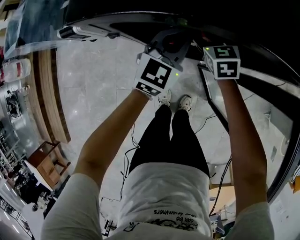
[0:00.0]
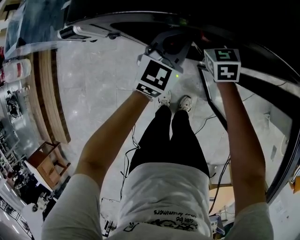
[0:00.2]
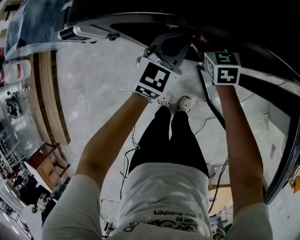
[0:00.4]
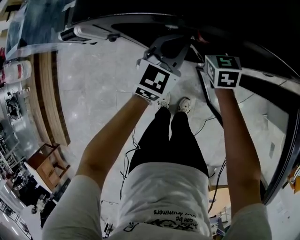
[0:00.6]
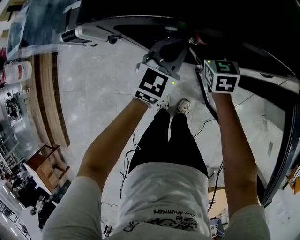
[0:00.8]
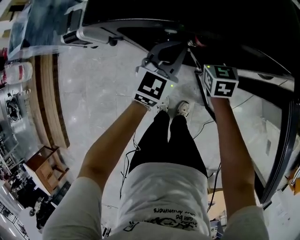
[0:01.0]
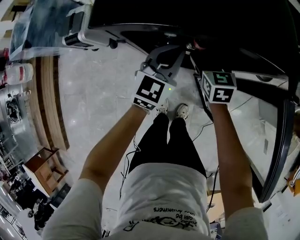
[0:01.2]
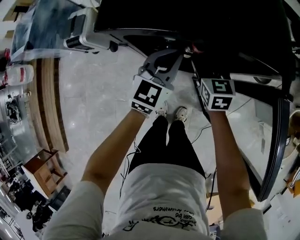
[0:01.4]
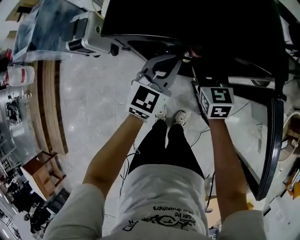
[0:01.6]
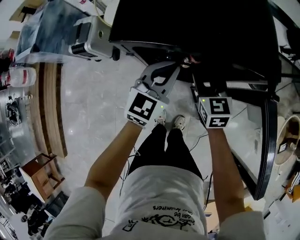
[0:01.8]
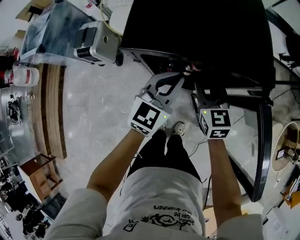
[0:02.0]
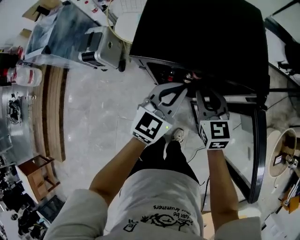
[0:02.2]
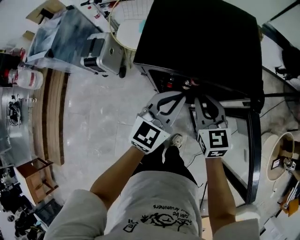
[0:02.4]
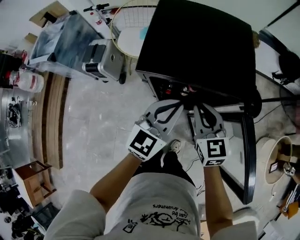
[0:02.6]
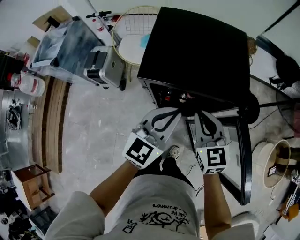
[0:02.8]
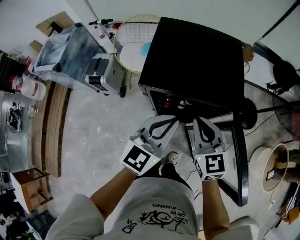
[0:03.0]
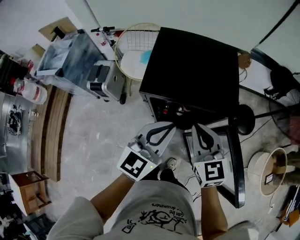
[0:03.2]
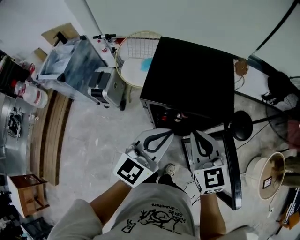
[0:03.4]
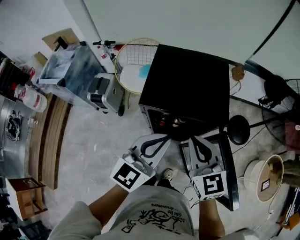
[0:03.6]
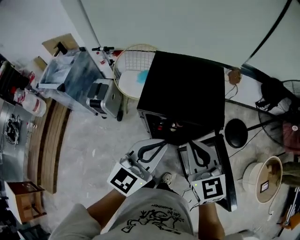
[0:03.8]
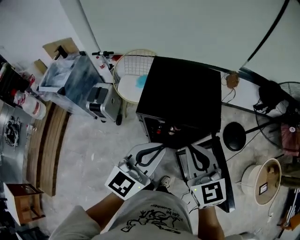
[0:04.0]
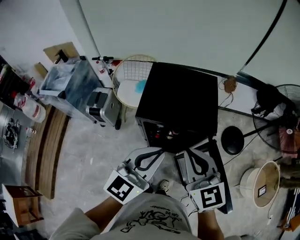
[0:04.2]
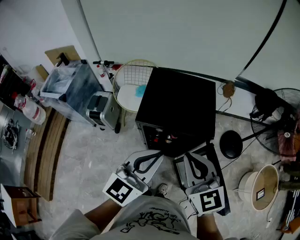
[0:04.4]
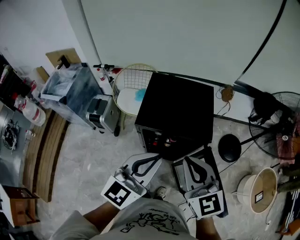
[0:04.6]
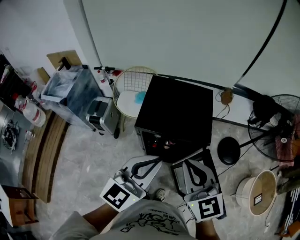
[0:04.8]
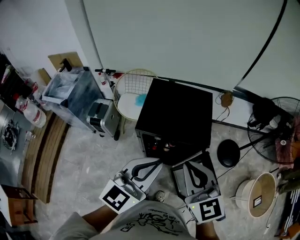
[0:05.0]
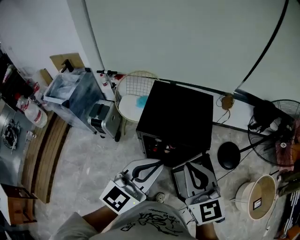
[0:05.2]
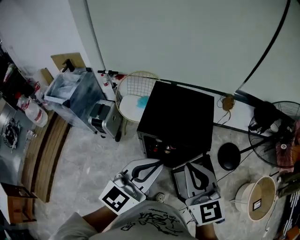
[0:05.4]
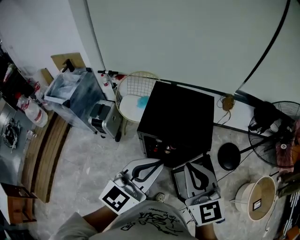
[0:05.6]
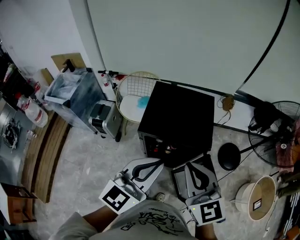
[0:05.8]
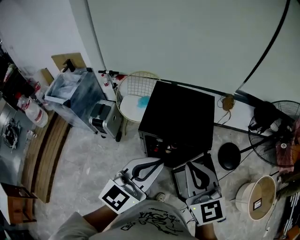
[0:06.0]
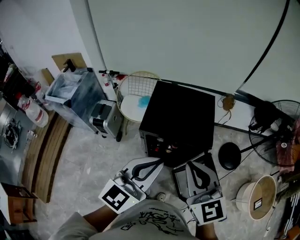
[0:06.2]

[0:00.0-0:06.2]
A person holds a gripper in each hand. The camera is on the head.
0.0 to 1.6 s: The left gripper travels upward by about 5 cm, while the right gripper moves upward and backward, roughly 10 cm, and closes.
1.6 to 3.2 s: The right gripper travels upward by about 25 cm, and closes its fingers; the left gripper is displaced upward and backward by roughly 25 cm.
3.2 to 4.6 s: Both grippers travel together upward, approximately 15 cm.
4.6 to 6.2 s: The grippers make only small movements.

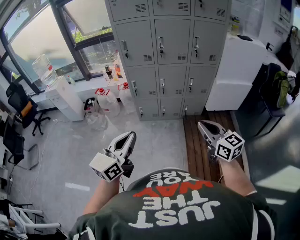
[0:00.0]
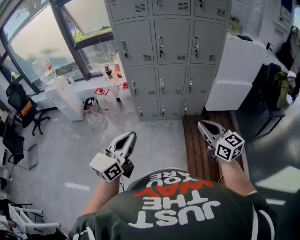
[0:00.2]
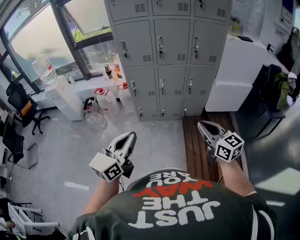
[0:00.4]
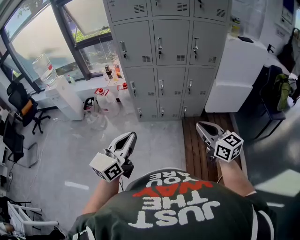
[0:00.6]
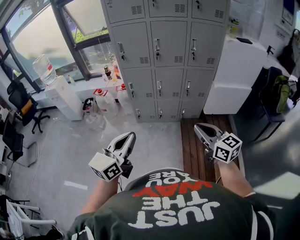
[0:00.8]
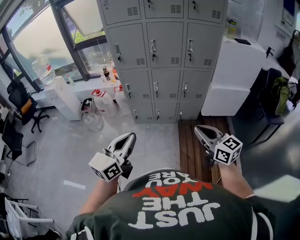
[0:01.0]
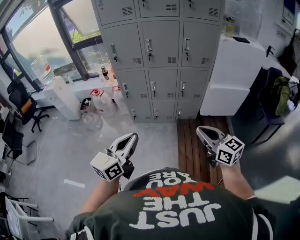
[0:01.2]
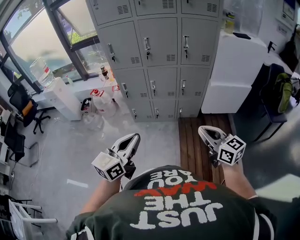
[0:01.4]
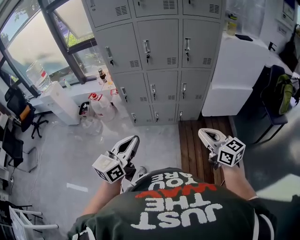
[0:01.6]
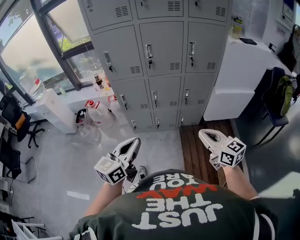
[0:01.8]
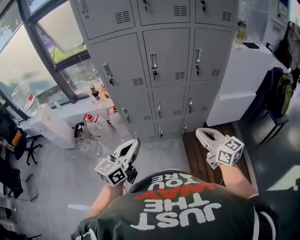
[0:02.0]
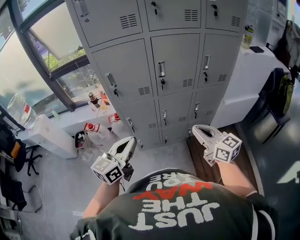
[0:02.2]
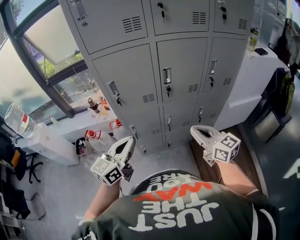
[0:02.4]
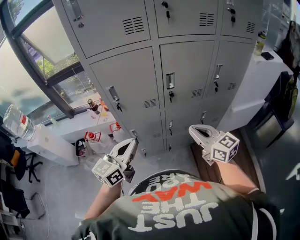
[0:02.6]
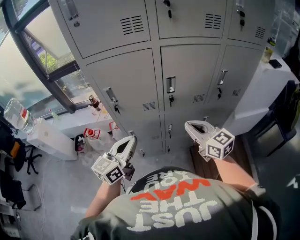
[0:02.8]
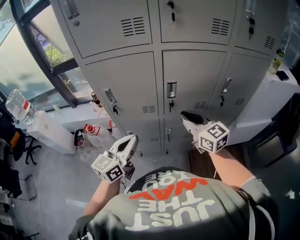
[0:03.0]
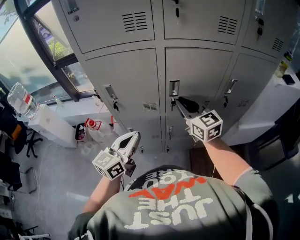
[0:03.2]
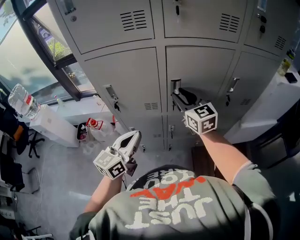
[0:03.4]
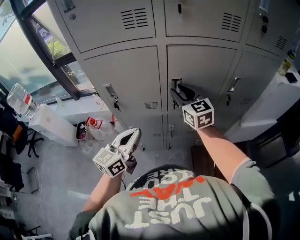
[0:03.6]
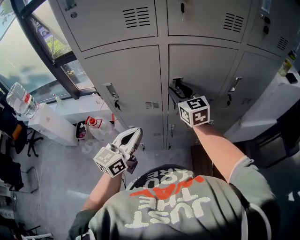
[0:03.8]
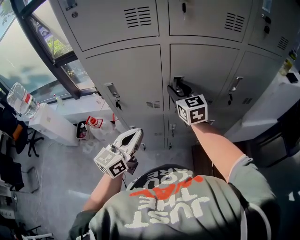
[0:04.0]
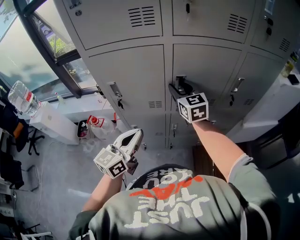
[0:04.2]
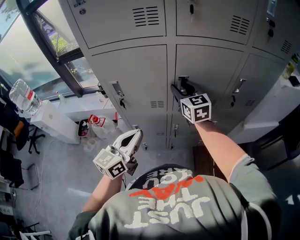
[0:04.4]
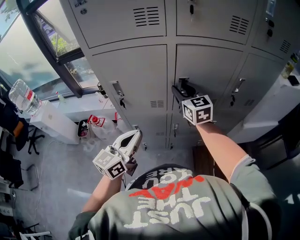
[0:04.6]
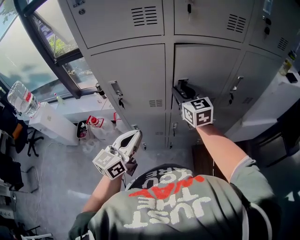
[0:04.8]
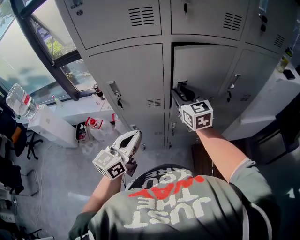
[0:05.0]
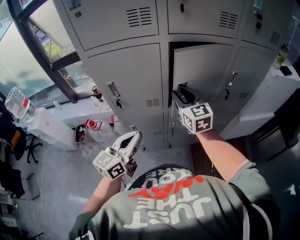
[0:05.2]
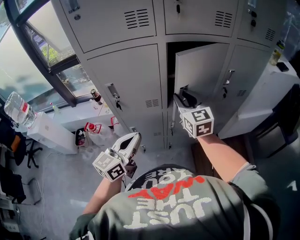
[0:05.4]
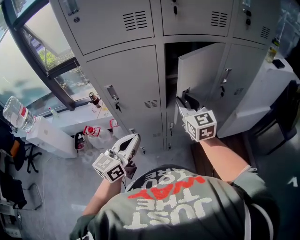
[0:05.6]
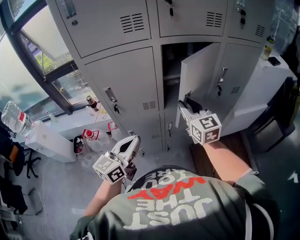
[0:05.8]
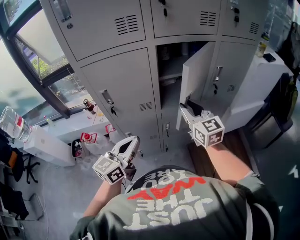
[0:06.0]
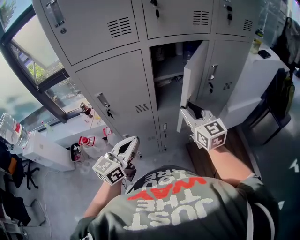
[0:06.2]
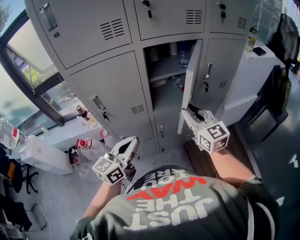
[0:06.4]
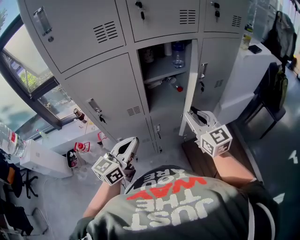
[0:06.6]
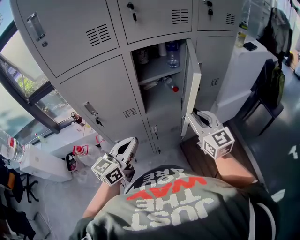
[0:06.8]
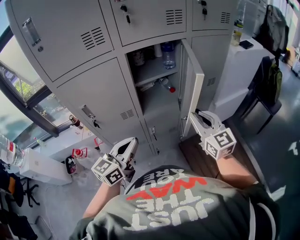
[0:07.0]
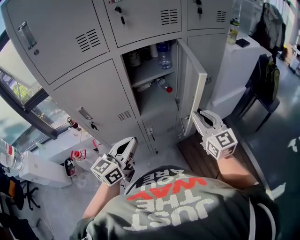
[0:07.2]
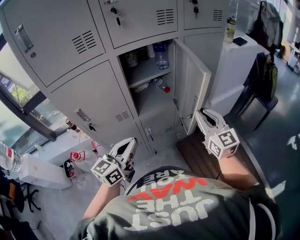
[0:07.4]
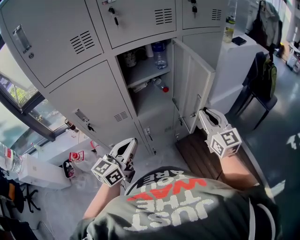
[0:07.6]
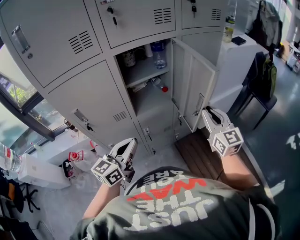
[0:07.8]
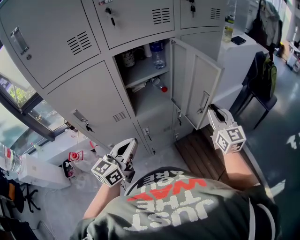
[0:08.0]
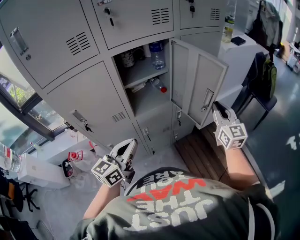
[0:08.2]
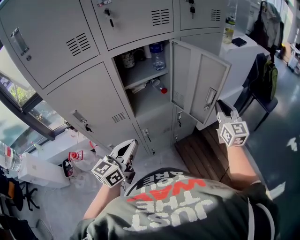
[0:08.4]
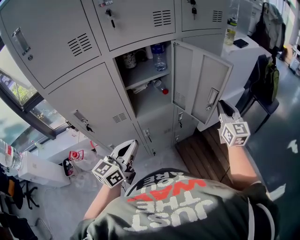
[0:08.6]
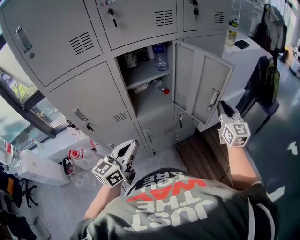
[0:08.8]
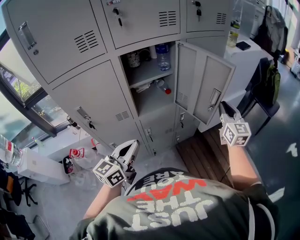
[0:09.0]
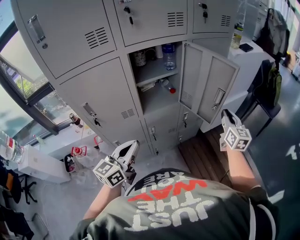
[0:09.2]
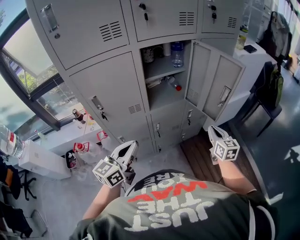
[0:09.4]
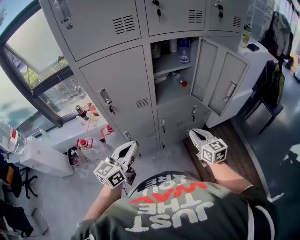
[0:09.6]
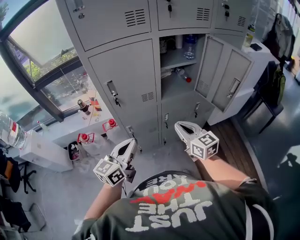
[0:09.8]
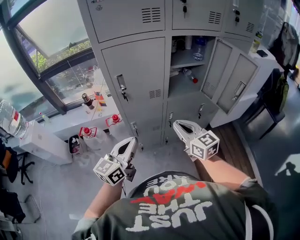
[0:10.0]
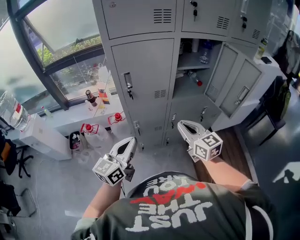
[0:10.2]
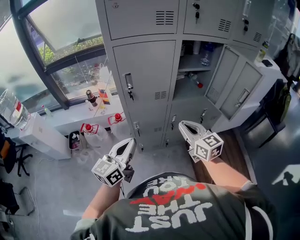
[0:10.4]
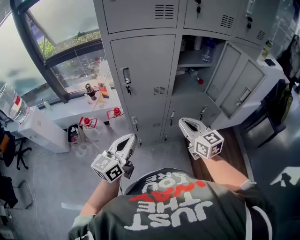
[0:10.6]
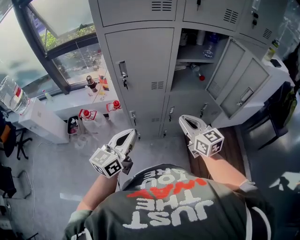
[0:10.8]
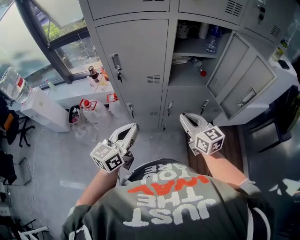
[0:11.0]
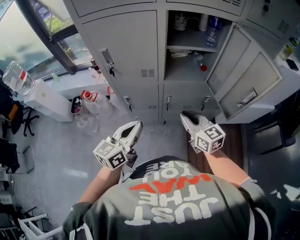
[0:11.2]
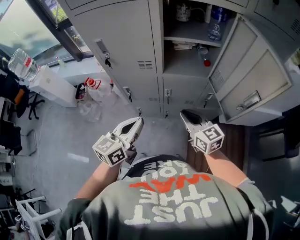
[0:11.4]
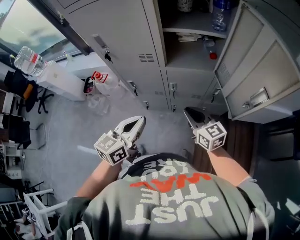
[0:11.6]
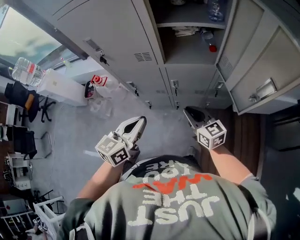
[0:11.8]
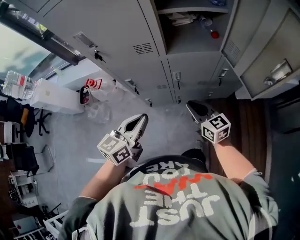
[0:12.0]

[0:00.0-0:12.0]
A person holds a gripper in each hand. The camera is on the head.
0.0 to 1.6 s: The two grippers go about 15 cm to the right and forward.
1.6 to 3.0 s: Both grippers are carried forward and to the left, approximately 50 cm.
3.0 to 4.4 s: The right gripper goes approximately 15 cm forward and to the left, and opens up.
4.4 to 6.0 s: The right gripper shifts some 15 cm backward and to the right.
6.0 to 7.6 s: The left gripper travels to the right by roughly 10 cm; the right gripper is displaced to the right by some 20 cm.
7.6 to 9.0 s: The right gripper goes some 10 cm to the right and forward.
9.0 to 10.4 s: The left gripper changes place by about 25 cm; the right gripper shifts by some 40 cm, and changes its angle by some 40 degrees.
10.4 to 12.0 s: The left gripper goes some 25 cm to the right and downward. The right gripper is displaced downward and to the right by roughly 25 cm.

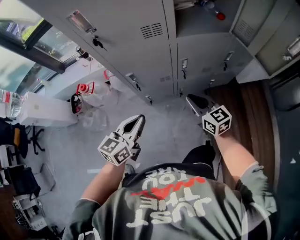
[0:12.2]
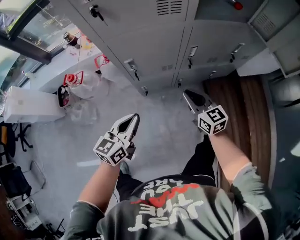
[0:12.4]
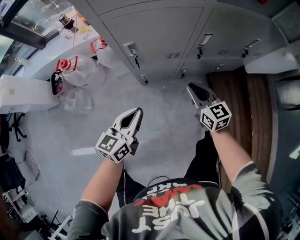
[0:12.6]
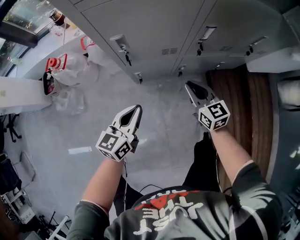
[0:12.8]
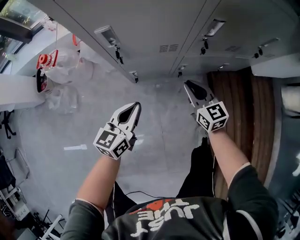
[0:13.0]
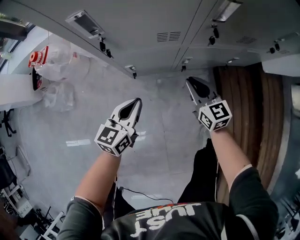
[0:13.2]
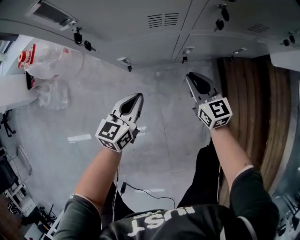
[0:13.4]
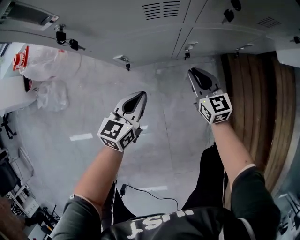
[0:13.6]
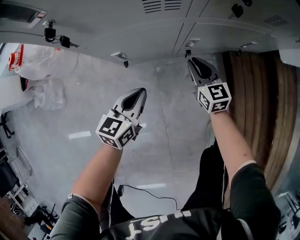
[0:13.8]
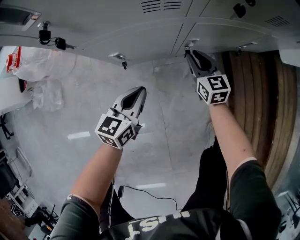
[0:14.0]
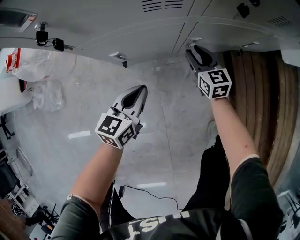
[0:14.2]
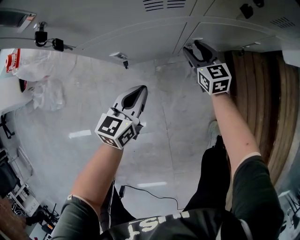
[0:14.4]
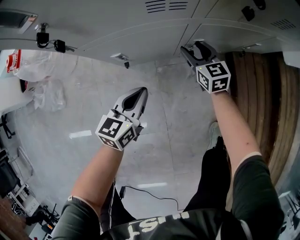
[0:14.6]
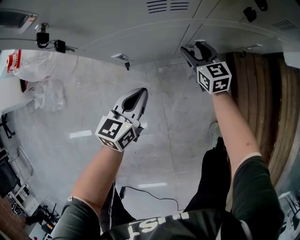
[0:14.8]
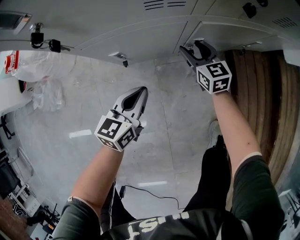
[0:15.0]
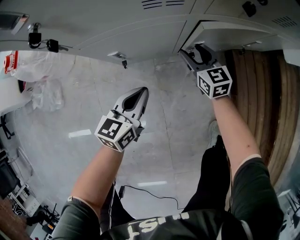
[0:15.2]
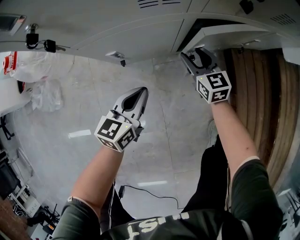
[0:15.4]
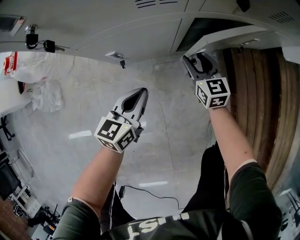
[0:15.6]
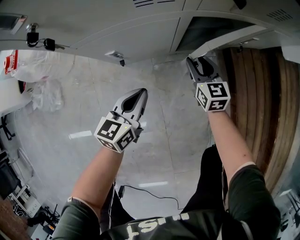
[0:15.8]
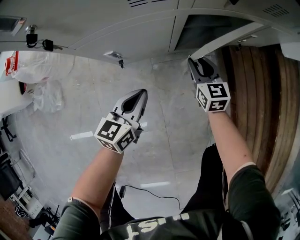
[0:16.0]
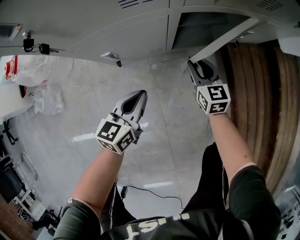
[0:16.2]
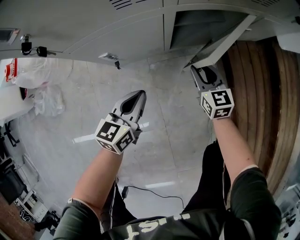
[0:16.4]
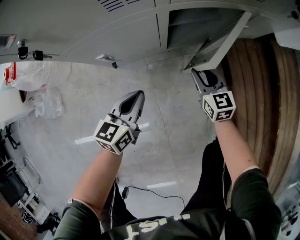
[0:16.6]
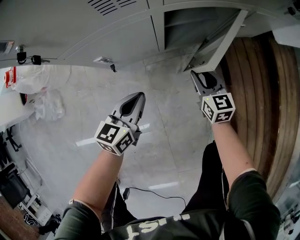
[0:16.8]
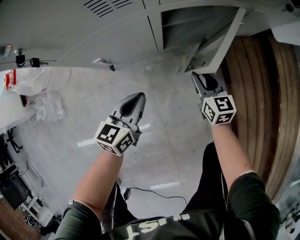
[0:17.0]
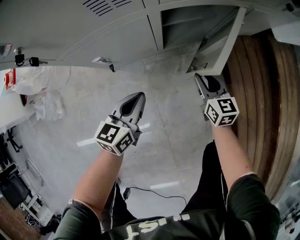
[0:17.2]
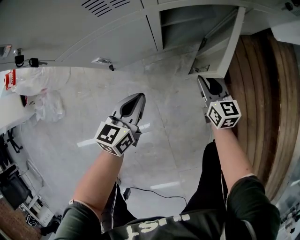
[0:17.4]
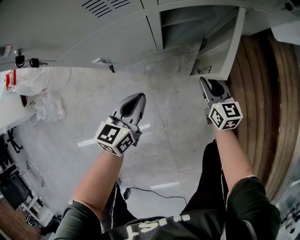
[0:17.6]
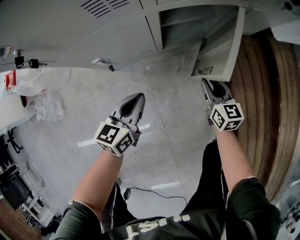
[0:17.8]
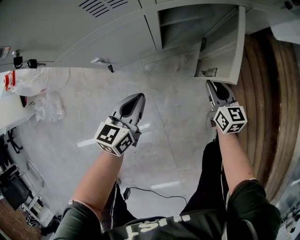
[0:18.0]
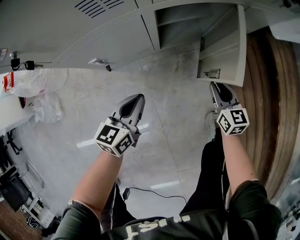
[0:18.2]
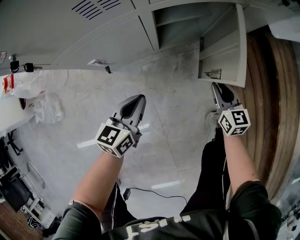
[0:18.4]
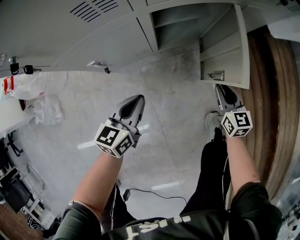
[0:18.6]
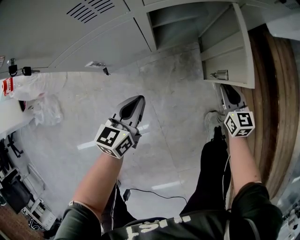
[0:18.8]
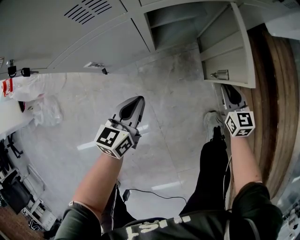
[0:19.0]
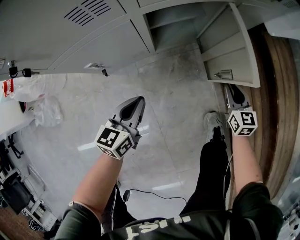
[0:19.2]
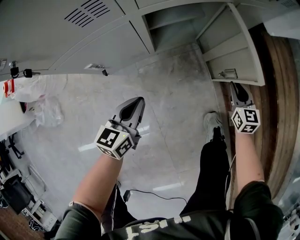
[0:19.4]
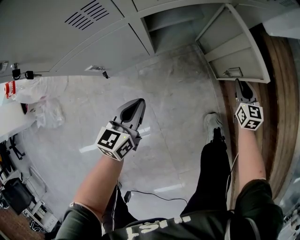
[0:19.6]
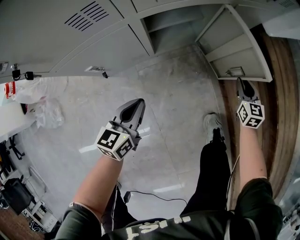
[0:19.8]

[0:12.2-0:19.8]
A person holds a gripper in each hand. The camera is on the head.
12.2 to 13.8 s: Both grippers travel together downward, roughly 60 cm.
13.8 to 15.2 s: The right gripper moves about 5 cm, and opens up.
15.2 to 16.8 s: The left gripper ends up some 5 cm from where it was; the right gripper travels to the right and backward by approximately 15 cm, and closes up.
16.8 to 18.2 s: The right gripper travels to the right by some 10 cm.
18.2 to 19.8 s: The right gripper shifts some 15 cm to the right.
